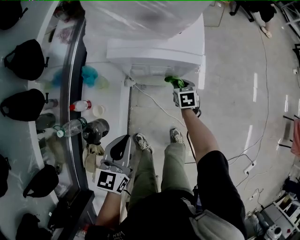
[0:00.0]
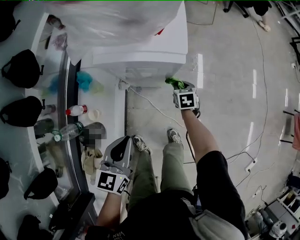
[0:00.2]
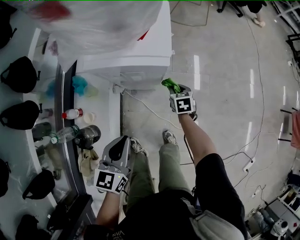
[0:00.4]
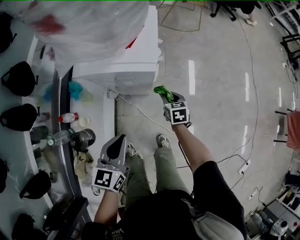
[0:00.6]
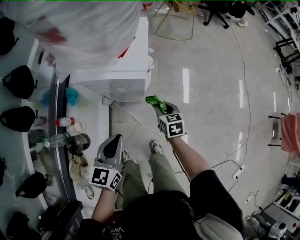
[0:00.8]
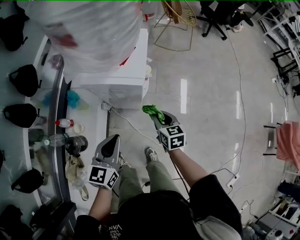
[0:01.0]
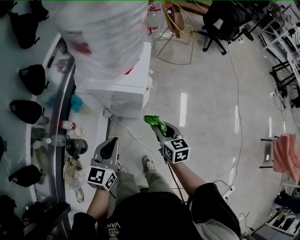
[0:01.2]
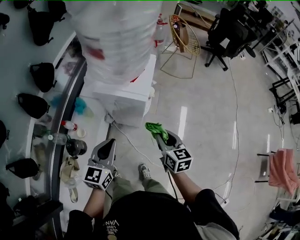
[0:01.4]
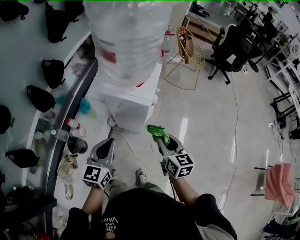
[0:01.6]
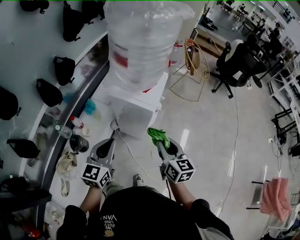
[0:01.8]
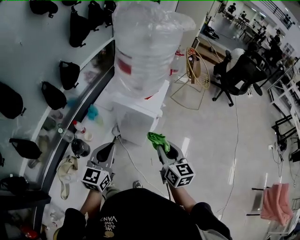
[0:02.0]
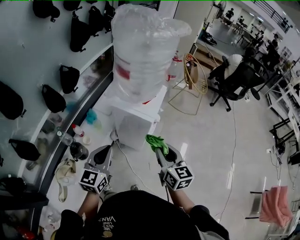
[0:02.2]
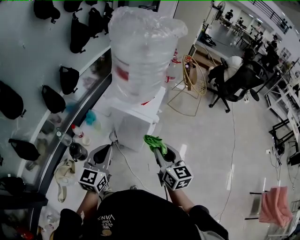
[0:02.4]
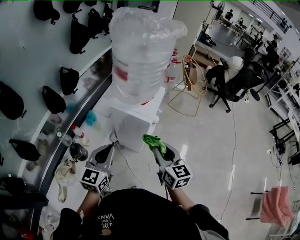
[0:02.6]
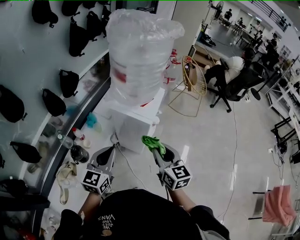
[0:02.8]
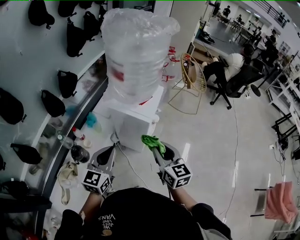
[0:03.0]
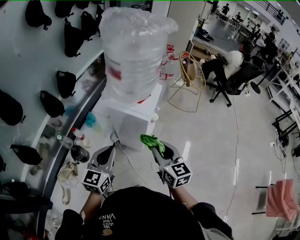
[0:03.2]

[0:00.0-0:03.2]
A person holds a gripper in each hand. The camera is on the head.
0:00.0 to 0:01.6: The left gripper goes about 20 cm upward and to the right; the right gripper heads upward, covering about 35 cm, and tips its fingers upward by some 30 degrees.
0:01.6 to 0:03.2: The right gripper moves upward, approximately 10 cm. The left gripper moves approximately 5 cm.
